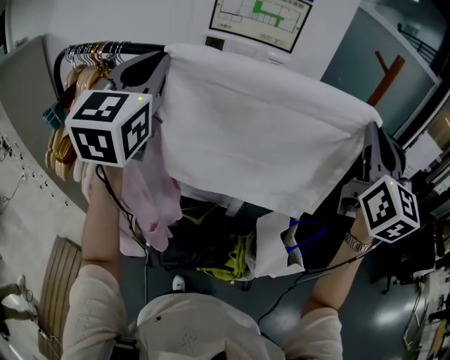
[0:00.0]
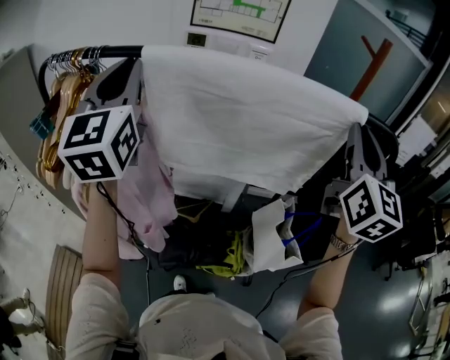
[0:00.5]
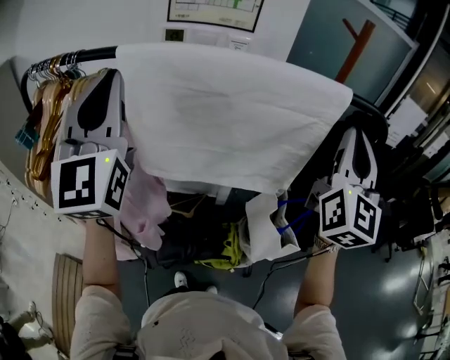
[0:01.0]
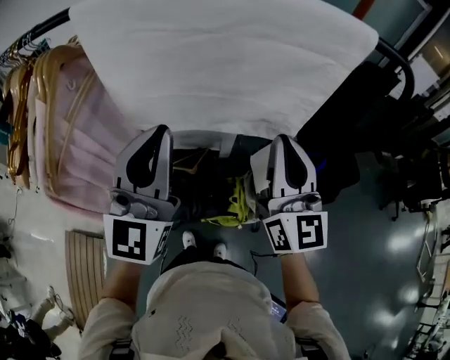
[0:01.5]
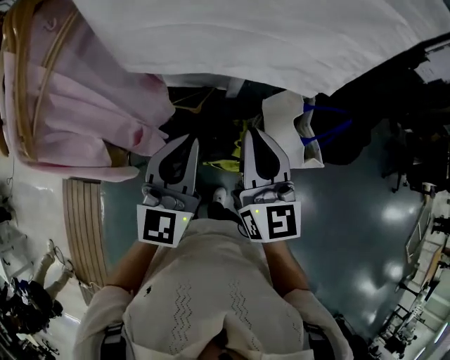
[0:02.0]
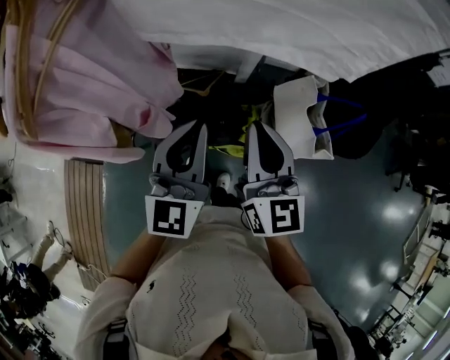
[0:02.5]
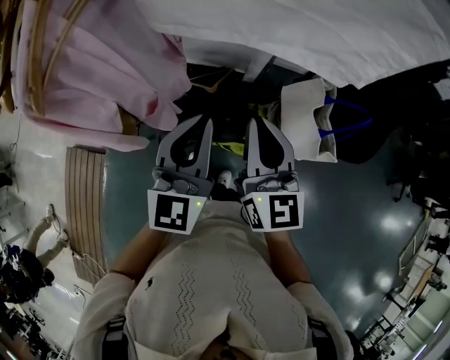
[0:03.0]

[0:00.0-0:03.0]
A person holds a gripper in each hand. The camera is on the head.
0:00.0 to 0:01.5: The right gripper shifts some 20 cm downward. Meanwhile the left gripper is displaced downward, to the right and backward by roughly 25 cm.
0:01.5 to 0:03.0: The left gripper goes roughly 15 cm downward, and changes its angle by some 20 degrees; the right gripper shifts roughly 20 cm downward and to the left, and turns by some 20 degrees.

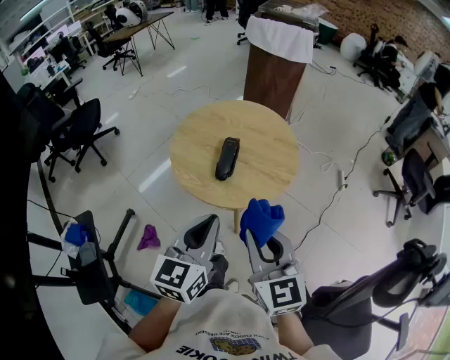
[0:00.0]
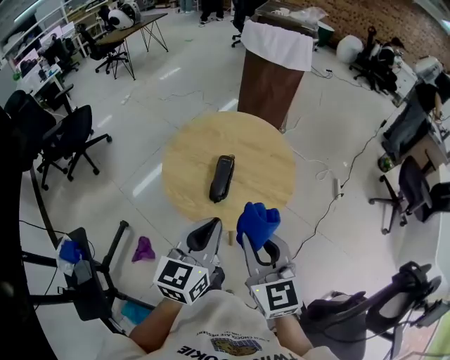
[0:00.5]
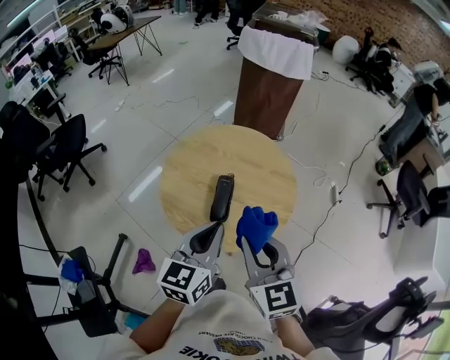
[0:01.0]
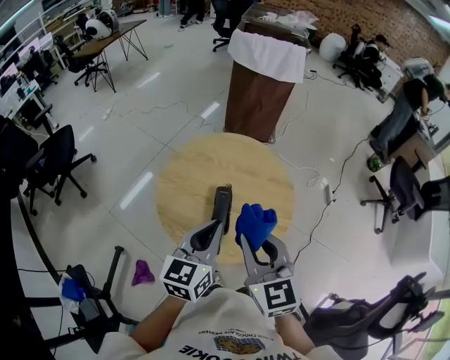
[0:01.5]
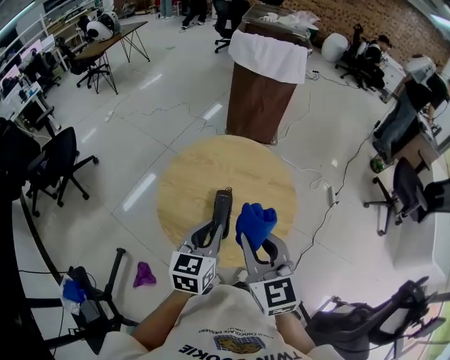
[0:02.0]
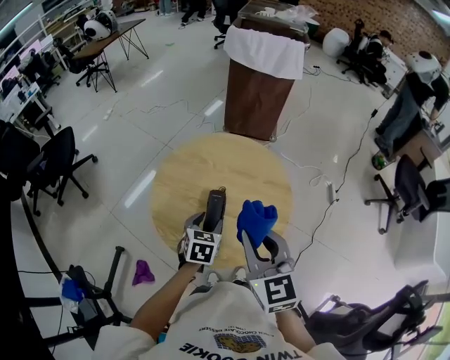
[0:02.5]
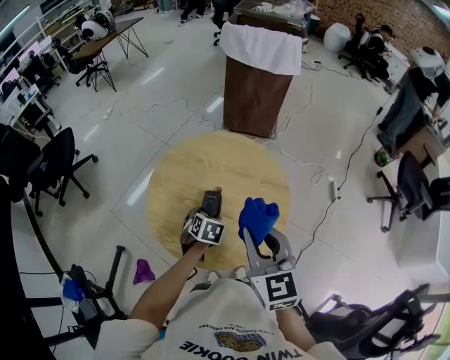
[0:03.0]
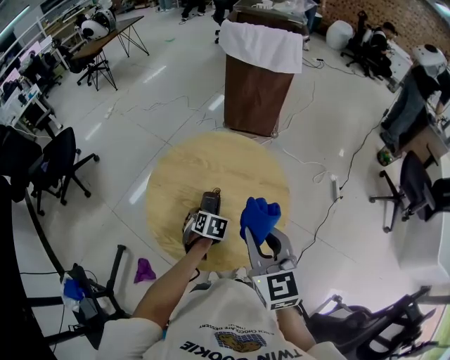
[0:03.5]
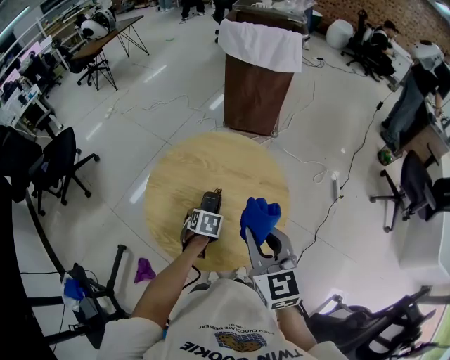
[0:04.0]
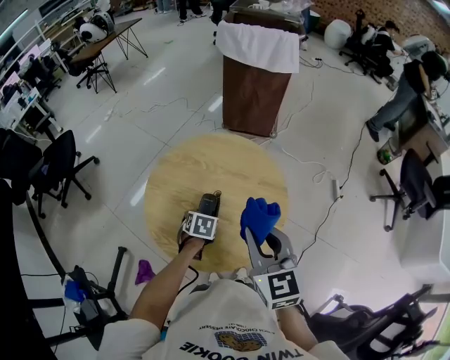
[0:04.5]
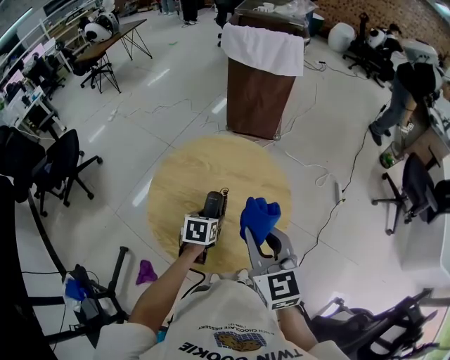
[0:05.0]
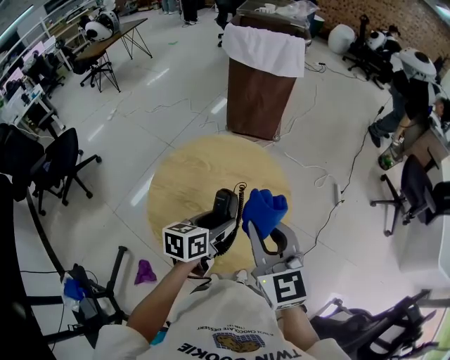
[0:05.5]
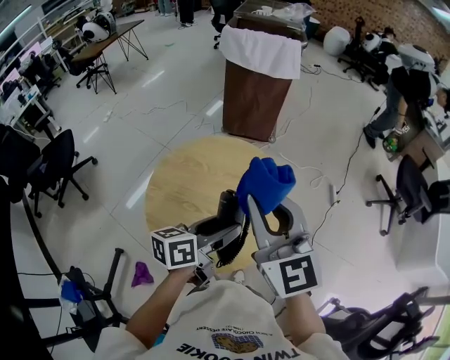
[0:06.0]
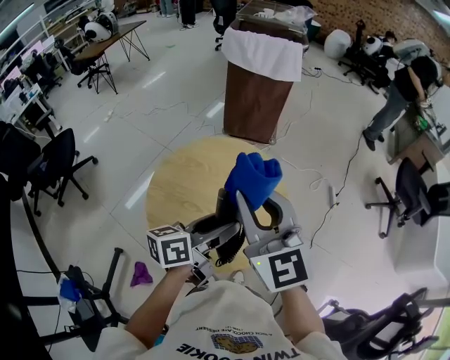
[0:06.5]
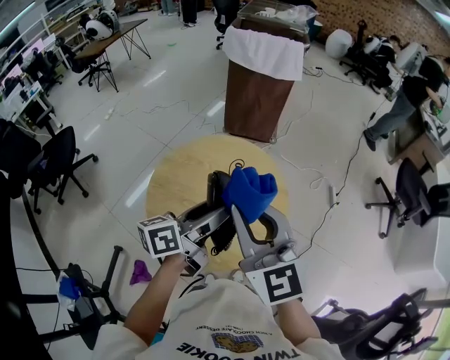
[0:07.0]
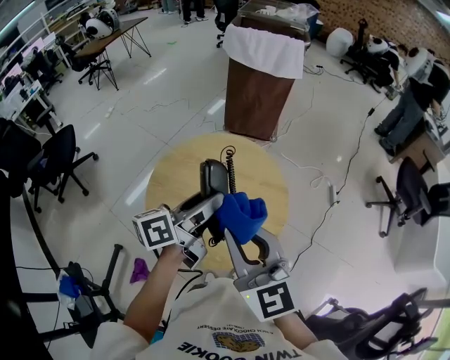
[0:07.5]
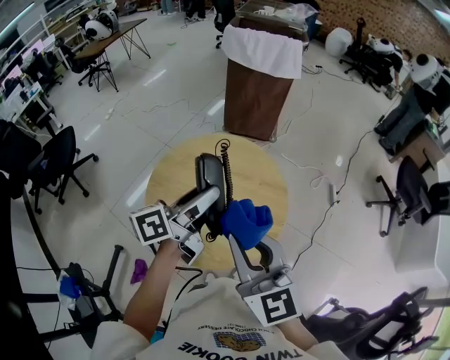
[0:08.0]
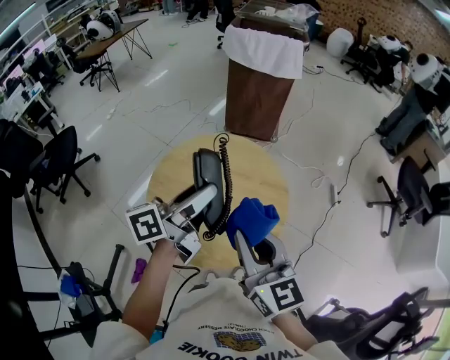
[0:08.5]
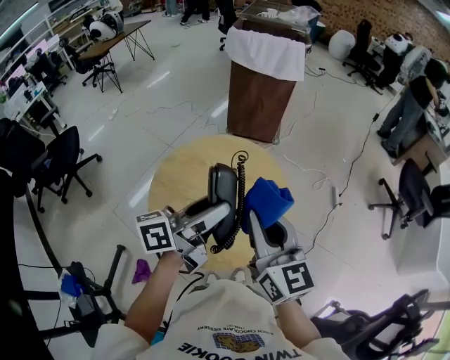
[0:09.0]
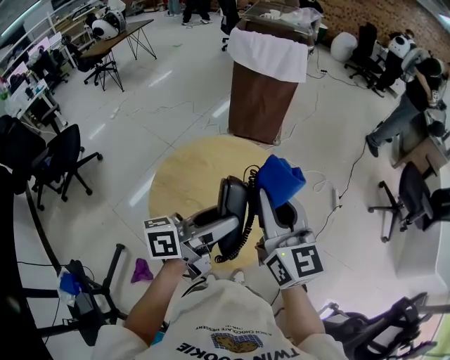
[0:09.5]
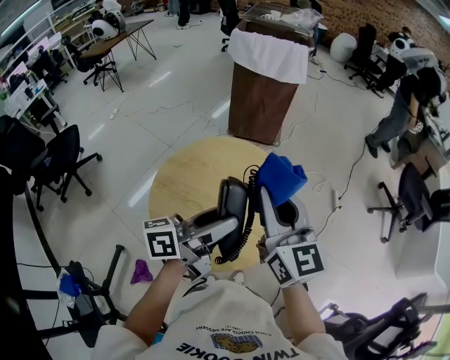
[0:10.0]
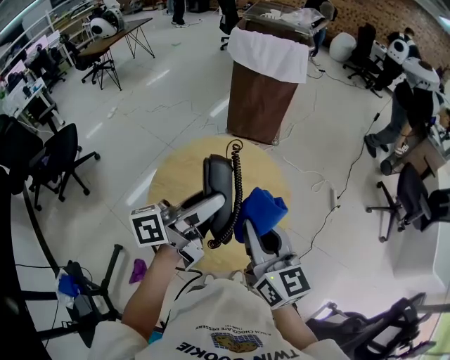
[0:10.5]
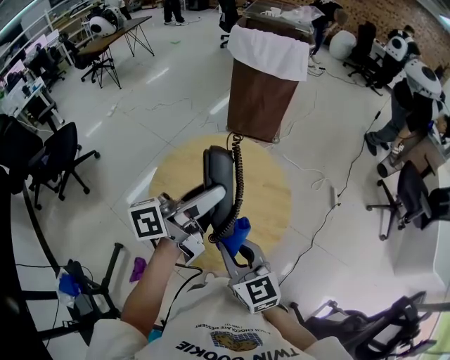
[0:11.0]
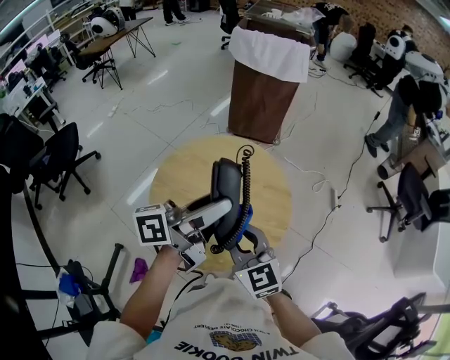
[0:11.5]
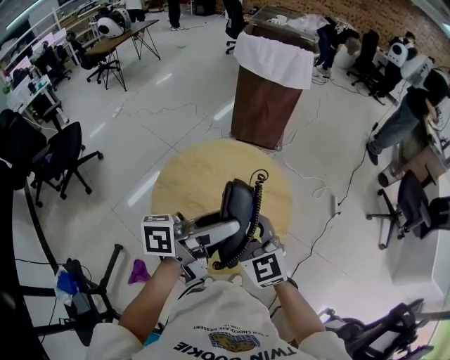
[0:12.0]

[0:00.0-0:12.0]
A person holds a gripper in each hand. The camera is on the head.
0:00.0 to 0:02.0: The two grippers go about 20 cm forward.
0:02.0 to 0:04.0: The right gripper is displaced to the right by roughly 10 cm; the left gripper moves downward and forward, about 25 cm, points its fingers some 40 degrees further downward, and opens up.
0:04.0 to 0:06.0: The right gripper shifts roughly 15 cm upward, while the left gripper travels upward by roughly 25 cm, and angles its fingers upward, by some 50 degrees.
0:06.0 to 0:08.0: The right gripper is displaced backward by roughly 10 cm. Meanwhile the left gripper shifts some 10 cm upward and to the left.
0:08.0 to 0:10.0: The right gripper moves forward, some 10 cm; the left gripper travels to the right by some 5 cm.
0:10.0 to 0:12.0: The right gripper shifts about 15 cm downward and to the left, and rotates roughly 30 degrees.

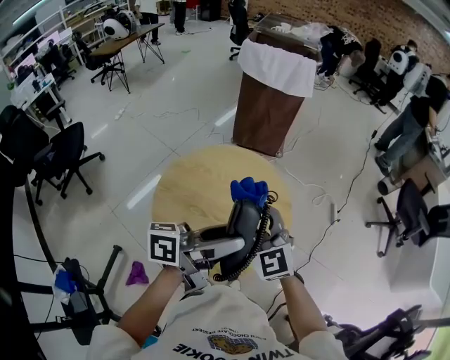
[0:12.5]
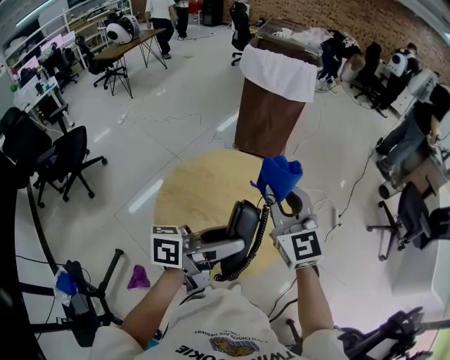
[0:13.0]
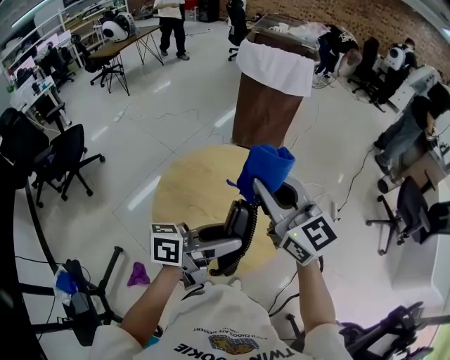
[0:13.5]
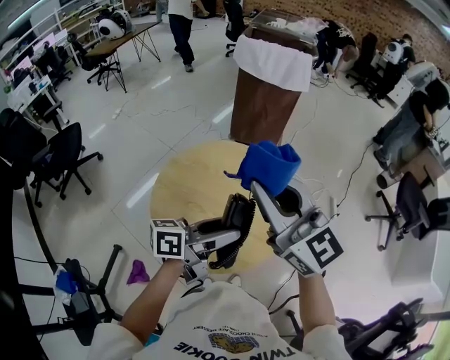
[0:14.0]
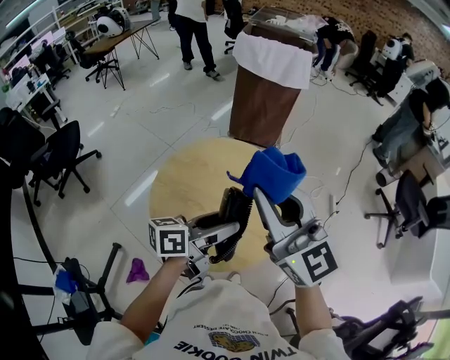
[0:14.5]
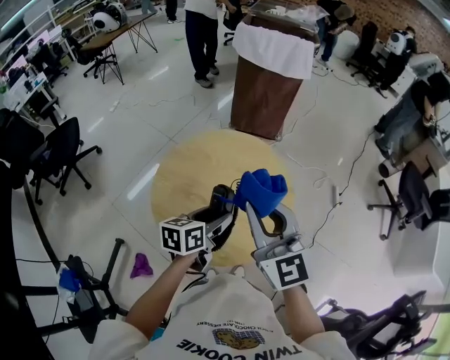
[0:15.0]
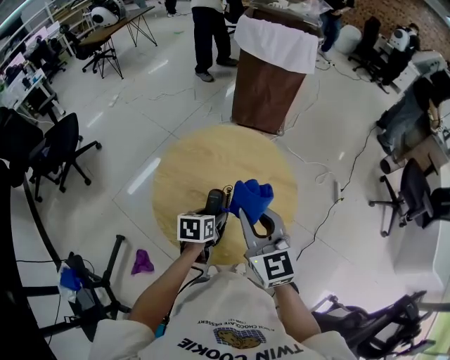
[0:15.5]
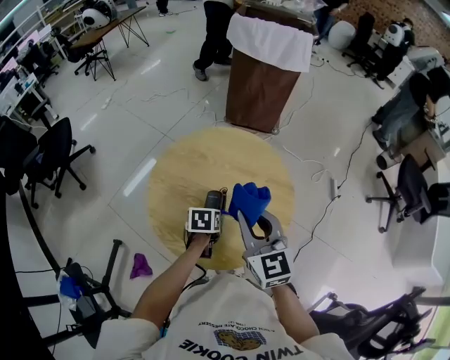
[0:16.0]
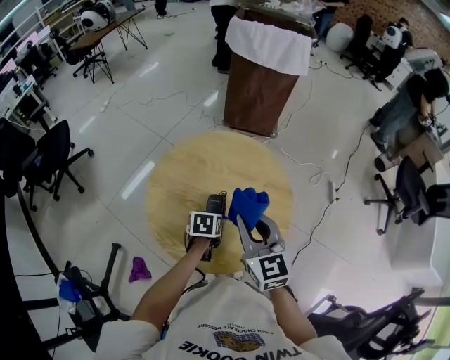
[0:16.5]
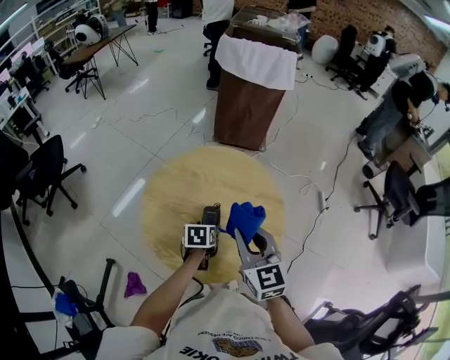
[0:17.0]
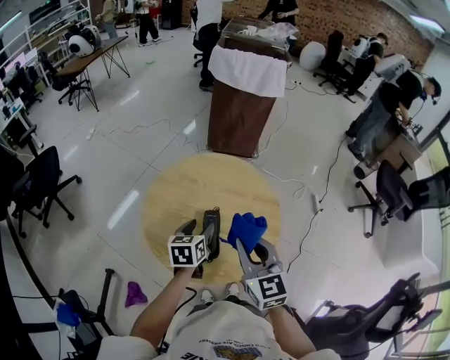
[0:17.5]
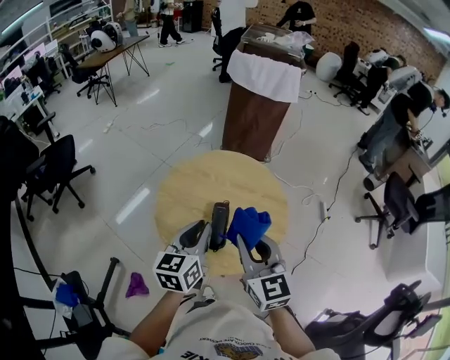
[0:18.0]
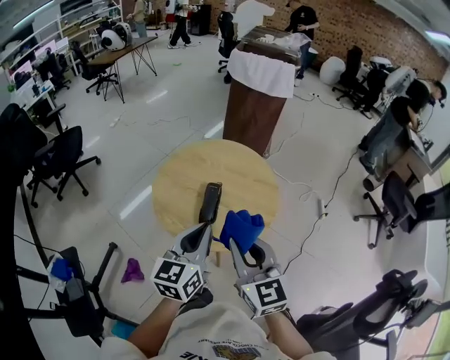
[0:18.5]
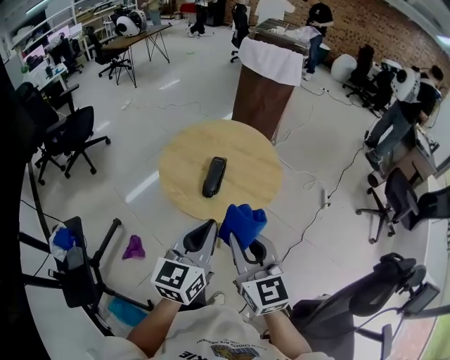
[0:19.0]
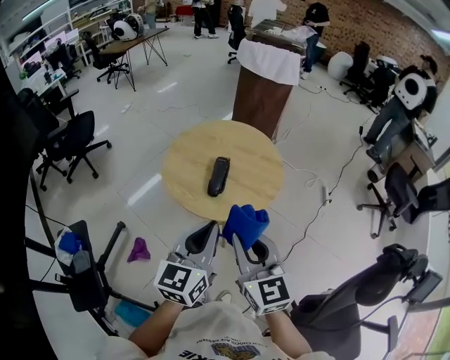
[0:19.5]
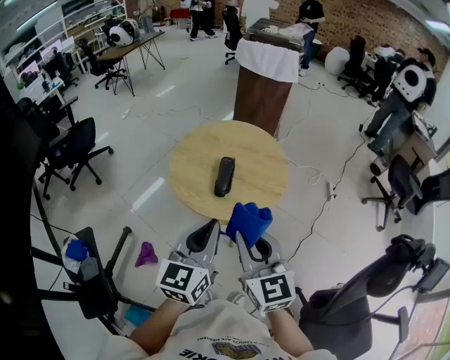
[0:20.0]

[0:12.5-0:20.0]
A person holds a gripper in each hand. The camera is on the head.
0:12.5 to 0:14.5: The right gripper heads upward, covering about 15 cm, and changes its angle by roughly 20 degrees, while the left gripper travels downward by some 5 cm.
0:14.5 to 0:16.5: The grippers both shift downward by about 25 cm. The left gripper tips its fingers downward by approximately 60 degrees. Meanwhile the right gripper turns by some 30 degrees.
0:16.5 to 0:18.0: The right gripper shifts roughly 10 cm backward and upward. Meanwhile the left gripper heads upward, covering some 25 cm, tilts its fingers approximately 50 degrees upward, and closes up.
0:18.0 to 0:20.0: Both grippers move backward, roughly 20 cm.

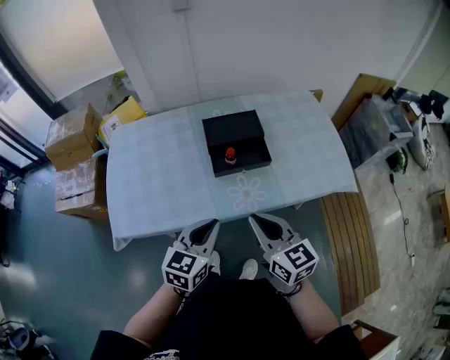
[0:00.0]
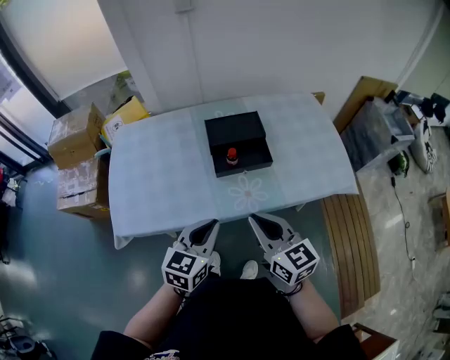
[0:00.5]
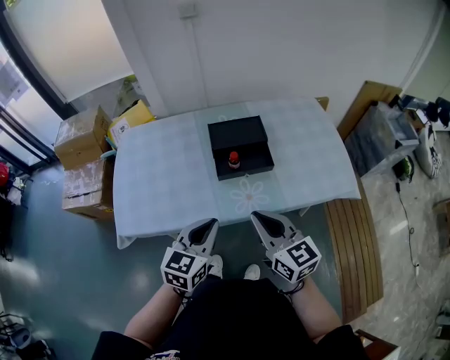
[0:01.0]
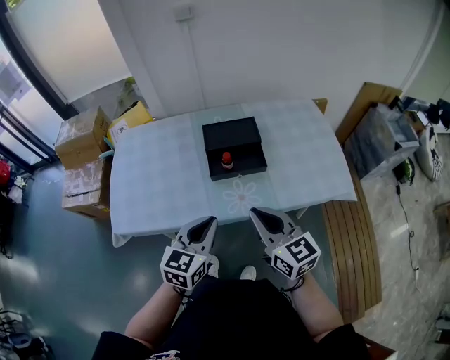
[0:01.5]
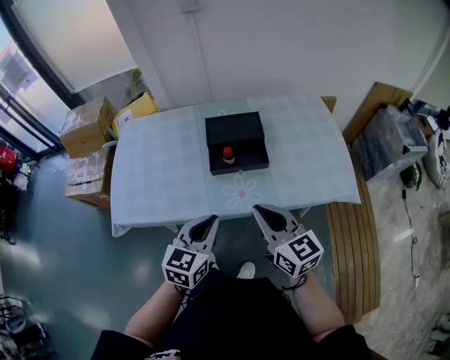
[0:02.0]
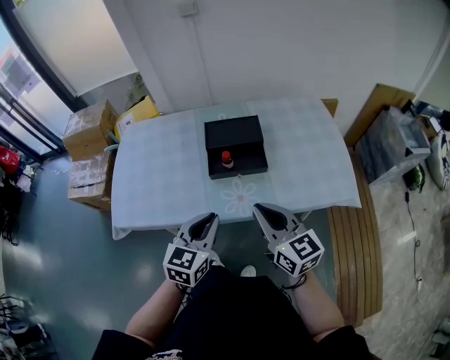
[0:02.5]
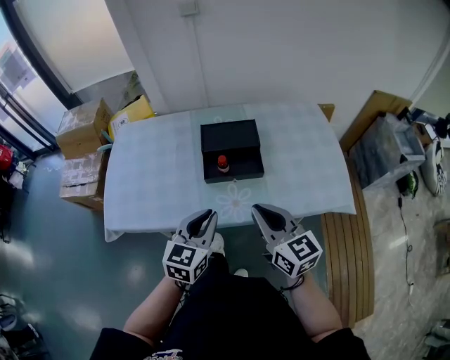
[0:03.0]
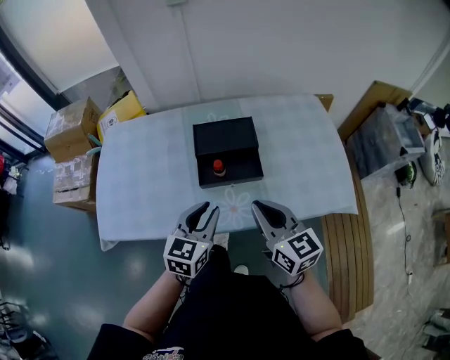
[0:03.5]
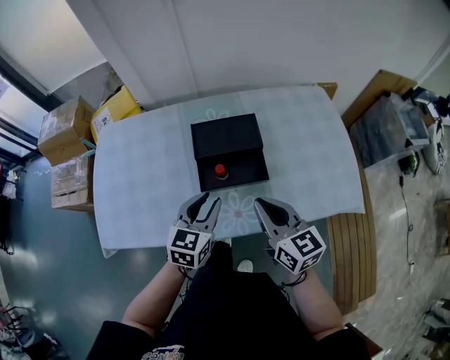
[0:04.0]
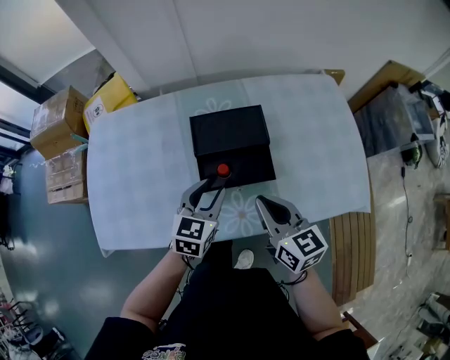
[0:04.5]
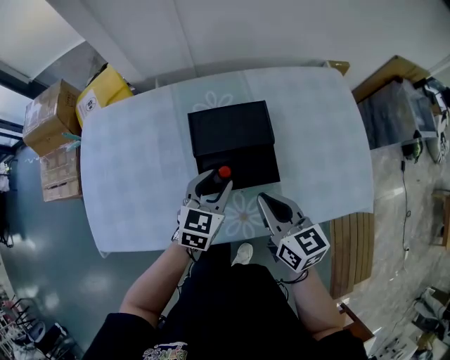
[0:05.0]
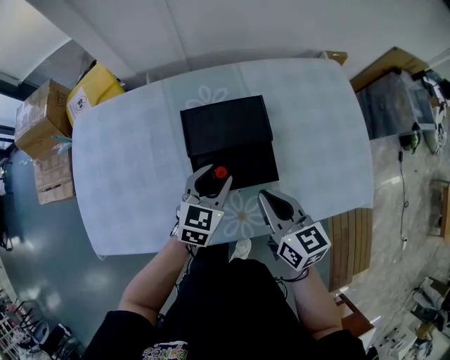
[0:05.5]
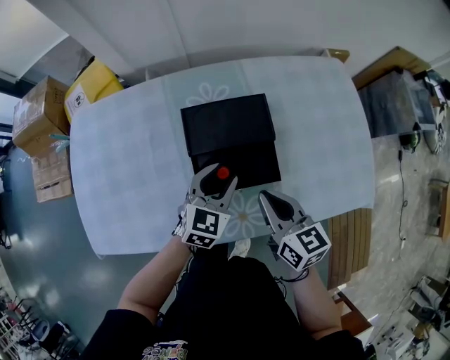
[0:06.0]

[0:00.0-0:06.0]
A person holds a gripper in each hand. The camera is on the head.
0:00.0 to 0:02.0: The right gripper moves to the right, roughly 5 cm.
0:02.0 to 0:04.0: Both grippers move forward, approximately 15 cm. The left gripper opens.
0:04.0 to 0:06.0: The right gripper is displaced downward and forward by about 10 cm; the left gripper travels forward and downward by roughly 15 cm.
